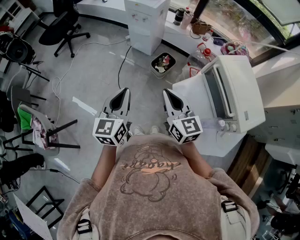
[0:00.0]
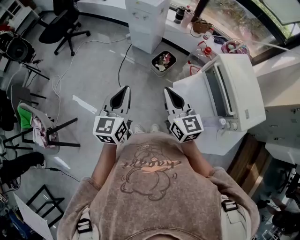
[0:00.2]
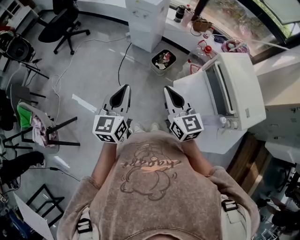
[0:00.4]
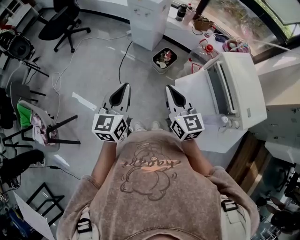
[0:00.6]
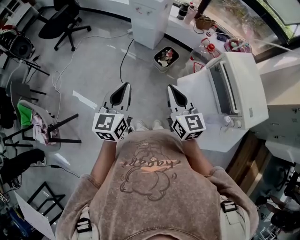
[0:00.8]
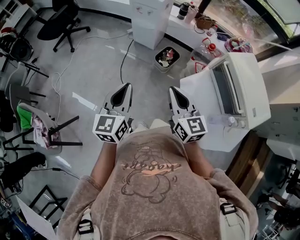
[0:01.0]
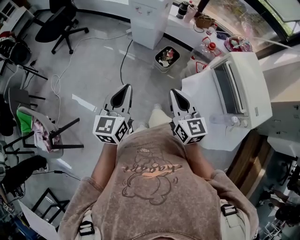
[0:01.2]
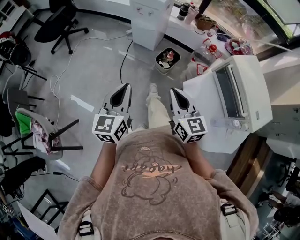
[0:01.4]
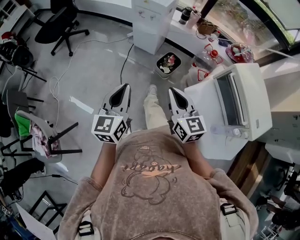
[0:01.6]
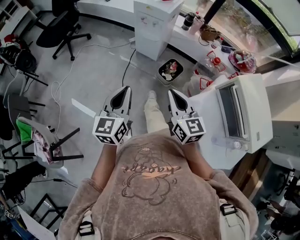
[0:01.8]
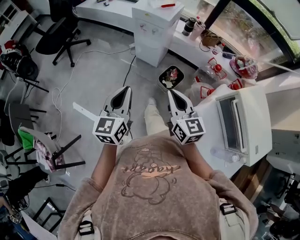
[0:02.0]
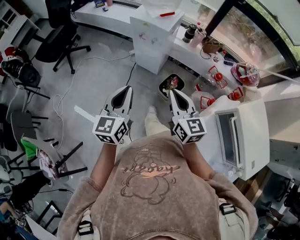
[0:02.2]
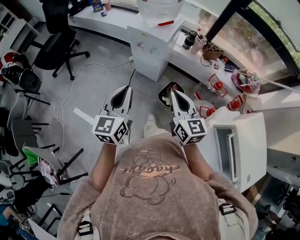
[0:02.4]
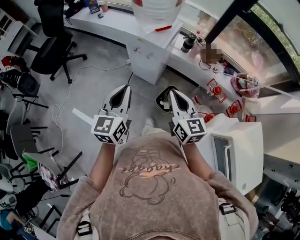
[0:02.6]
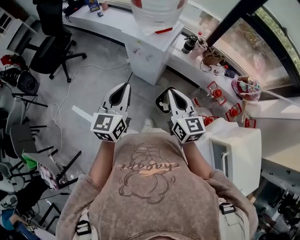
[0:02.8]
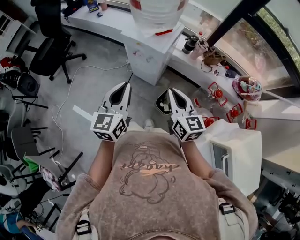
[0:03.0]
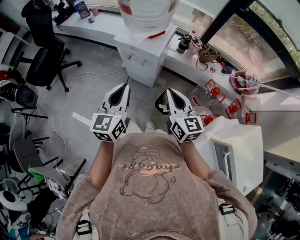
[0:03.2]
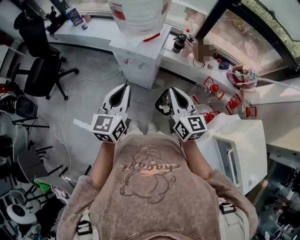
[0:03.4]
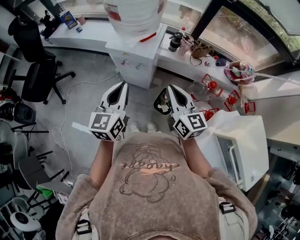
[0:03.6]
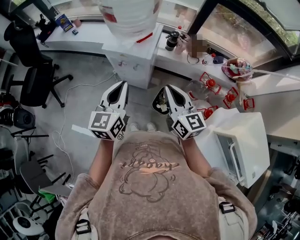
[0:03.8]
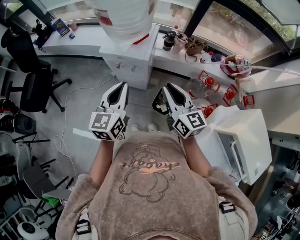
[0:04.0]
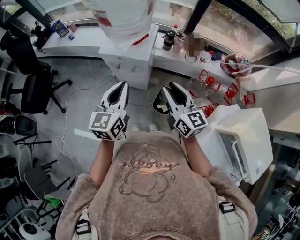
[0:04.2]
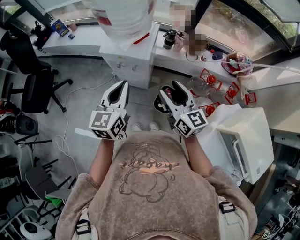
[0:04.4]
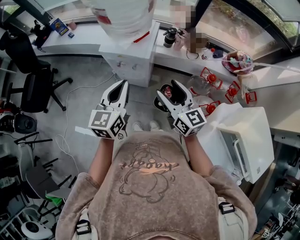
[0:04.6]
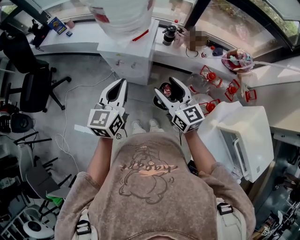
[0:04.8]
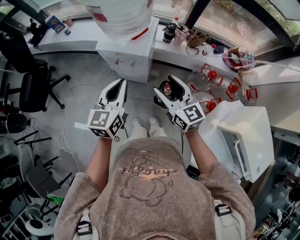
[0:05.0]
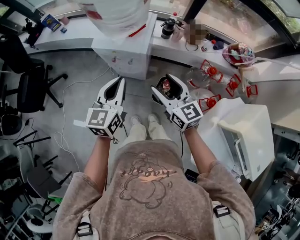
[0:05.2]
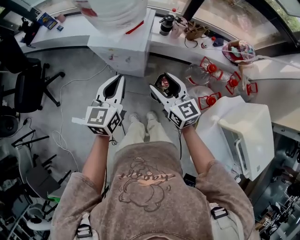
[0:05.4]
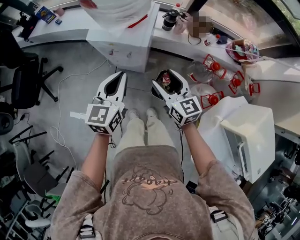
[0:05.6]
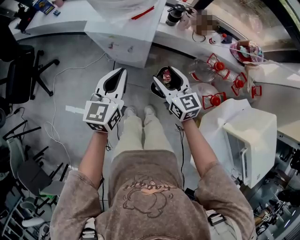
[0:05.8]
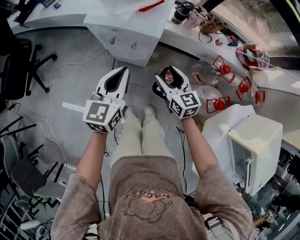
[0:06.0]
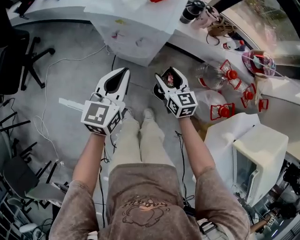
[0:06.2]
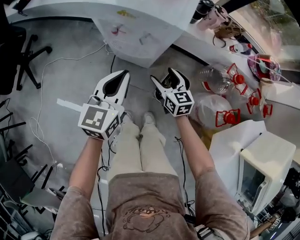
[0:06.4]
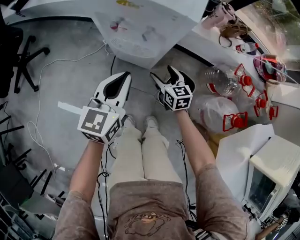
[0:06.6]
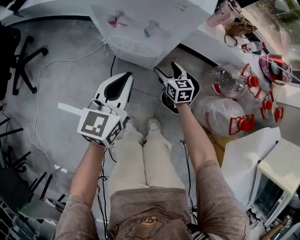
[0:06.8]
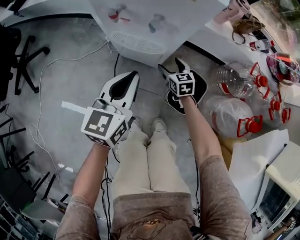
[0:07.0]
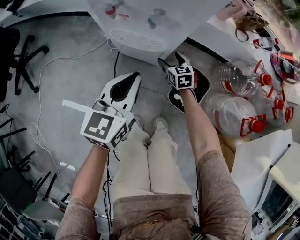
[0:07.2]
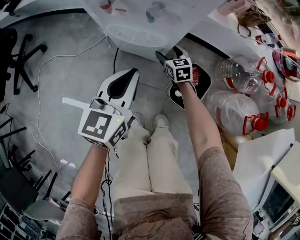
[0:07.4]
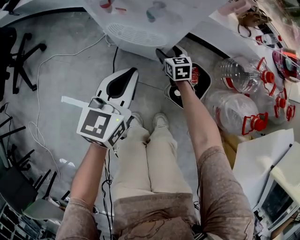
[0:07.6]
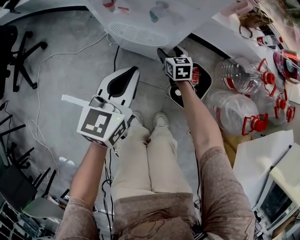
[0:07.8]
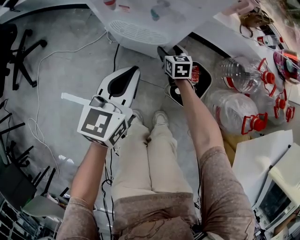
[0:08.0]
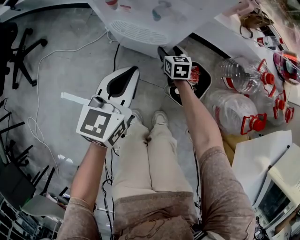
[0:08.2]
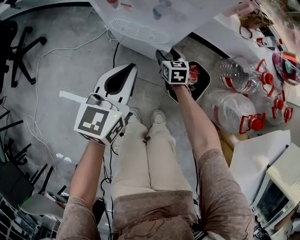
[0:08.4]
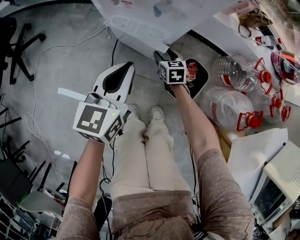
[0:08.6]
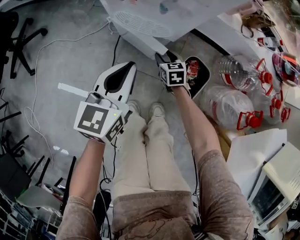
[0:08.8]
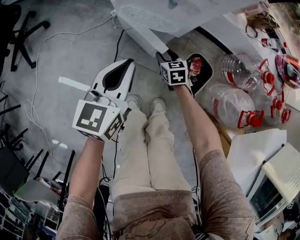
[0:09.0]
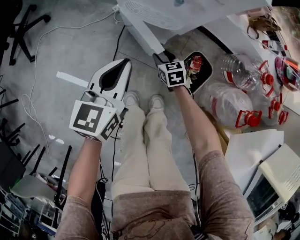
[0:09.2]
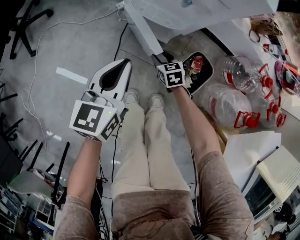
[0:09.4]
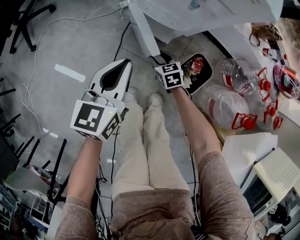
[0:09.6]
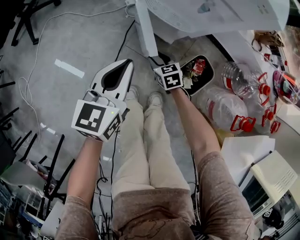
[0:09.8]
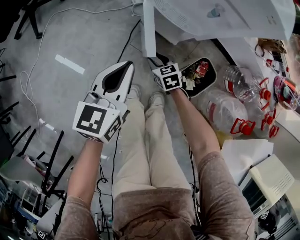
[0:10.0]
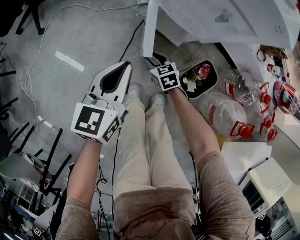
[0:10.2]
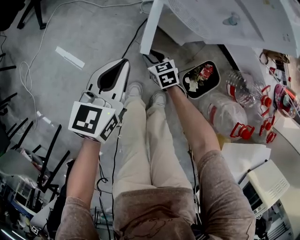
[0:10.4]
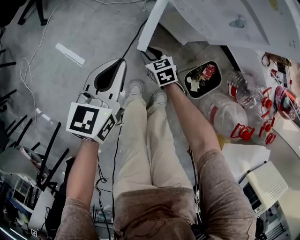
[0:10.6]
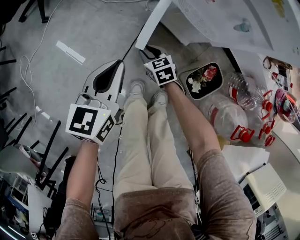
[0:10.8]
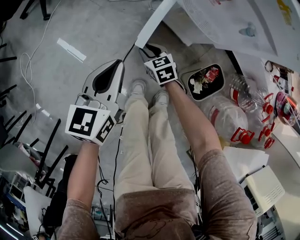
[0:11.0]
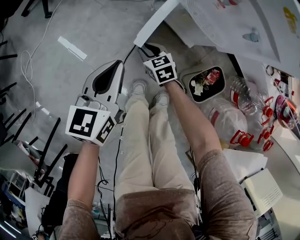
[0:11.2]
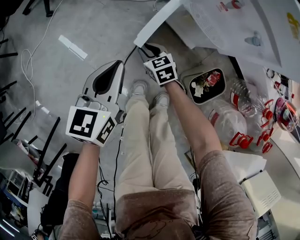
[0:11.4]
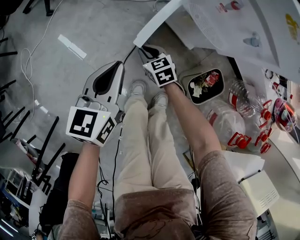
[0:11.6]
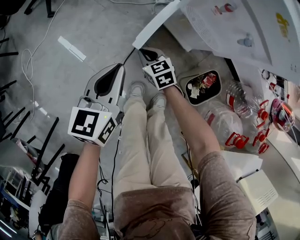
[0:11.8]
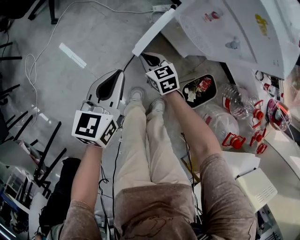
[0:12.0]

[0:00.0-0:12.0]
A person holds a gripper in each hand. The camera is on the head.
0:00.0 to 0:01.6: Both grippers travel together to the left and forward, about 10 cm.
0:01.6 to 0:03.0: The pair of grippers is taken forward, approximately 40 cm.
0:03.0 to 0:04.4: The left gripper heads forward, covering approximately 10 cm, while the right gripper opens.
0:04.4 to 0:06.0: The two grippers go approximately 20 cm downward.
0:06.0 to 0:07.6: The right gripper goes roughly 40 cm downward; the left gripper shifts roughly 25 cm downward.
0:07.6 to 0:09.0: The right gripper shifts some 10 cm backward, while the left gripper changes place by about 5 cm.
0:09.0 to 0:10.4: The two grippers go approximately 15 cm to the left. The right gripper swivels approximately 30 degrees.
0:10.4 to 0:12.0: The right gripper is displaced upward and to the left by some 10 cm, and closes its fingers; the left gripper shifts some 5 cm to the left.

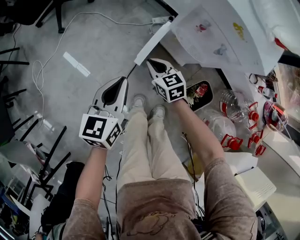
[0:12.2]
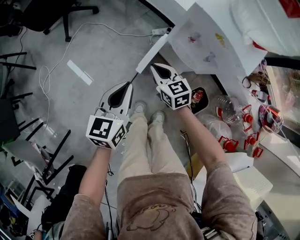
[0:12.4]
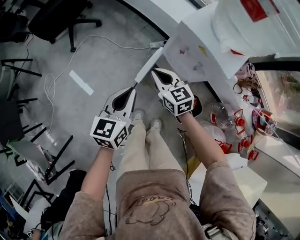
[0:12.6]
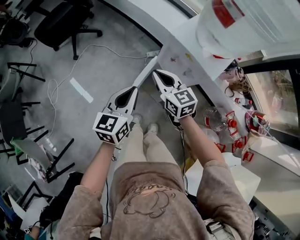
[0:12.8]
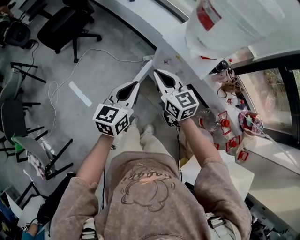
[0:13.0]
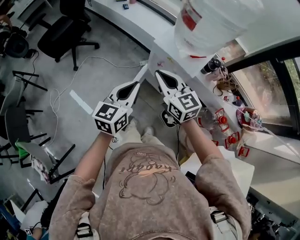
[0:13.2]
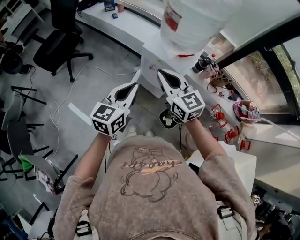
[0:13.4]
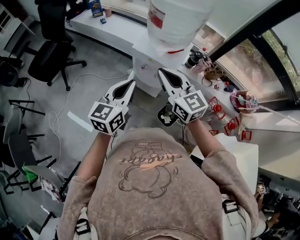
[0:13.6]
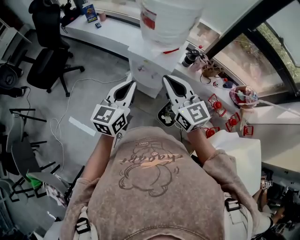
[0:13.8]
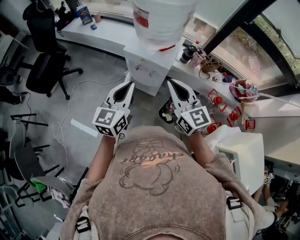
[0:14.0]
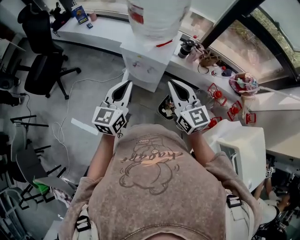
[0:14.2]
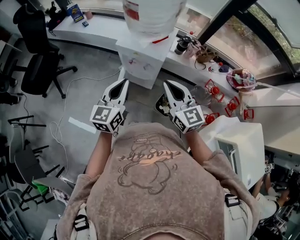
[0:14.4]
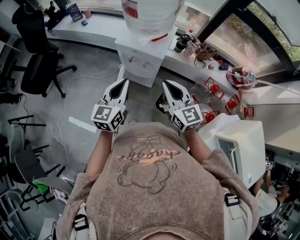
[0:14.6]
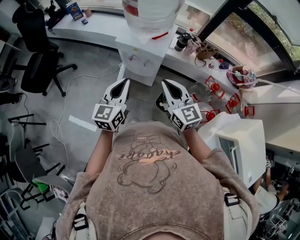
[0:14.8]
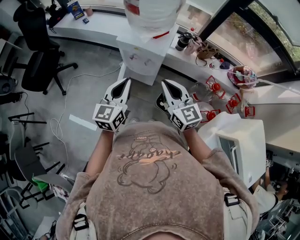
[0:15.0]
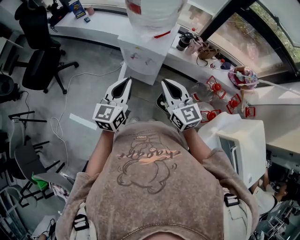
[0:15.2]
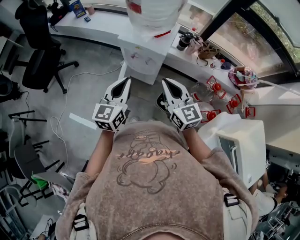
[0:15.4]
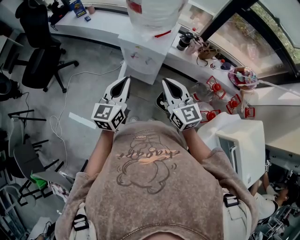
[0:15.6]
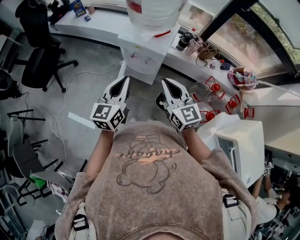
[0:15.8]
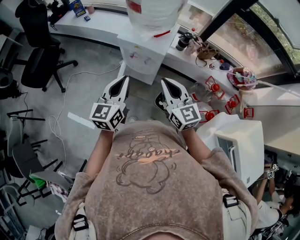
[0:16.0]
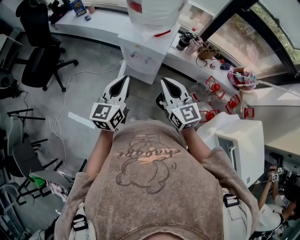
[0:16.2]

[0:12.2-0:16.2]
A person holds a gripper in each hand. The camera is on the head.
0:12.2 to 0:13.6: The right gripper travels upward by approximately 50 cm, and changes its angle by roughly 30 degrees. Meanwhile the left gripper heads upward and to the right, covering approximately 40 cm, and swivels approximately 30 degrees.
0:13.6 to 0:14.8: The right gripper is displaced to the right, downward and backward by about 15 cm. The left gripper heads downward, covering about 5 cm.
0:14.8 to 0:16.2: The grippers stay close to where they were, moving slightly.

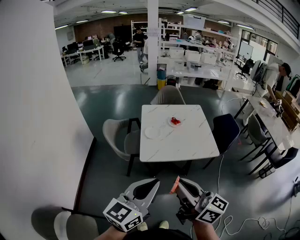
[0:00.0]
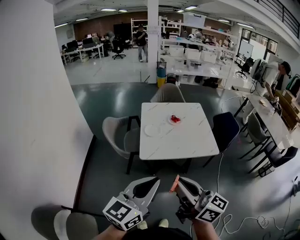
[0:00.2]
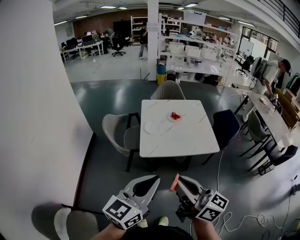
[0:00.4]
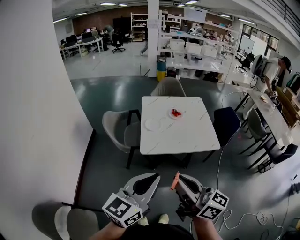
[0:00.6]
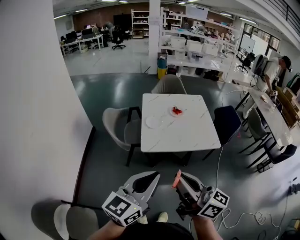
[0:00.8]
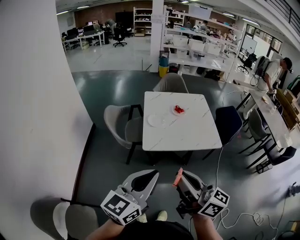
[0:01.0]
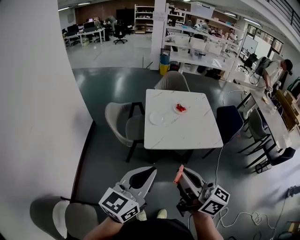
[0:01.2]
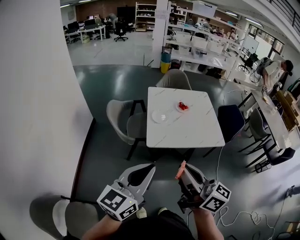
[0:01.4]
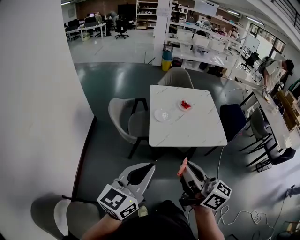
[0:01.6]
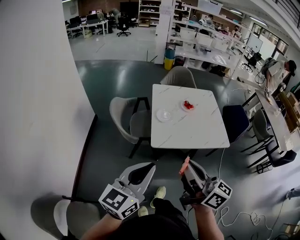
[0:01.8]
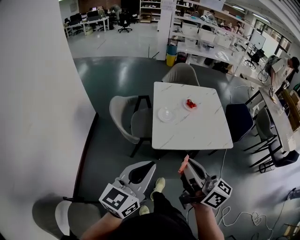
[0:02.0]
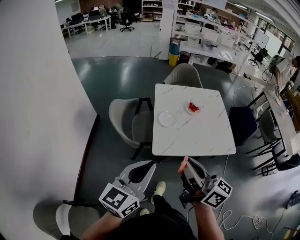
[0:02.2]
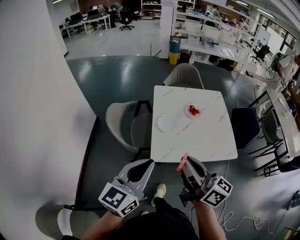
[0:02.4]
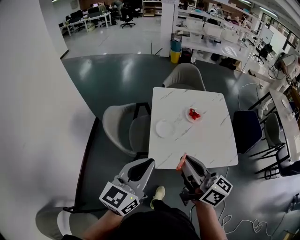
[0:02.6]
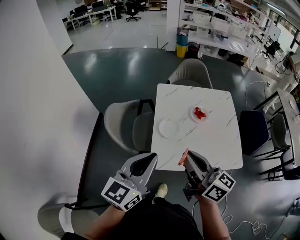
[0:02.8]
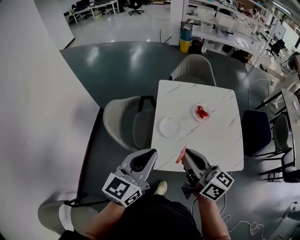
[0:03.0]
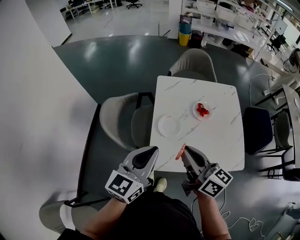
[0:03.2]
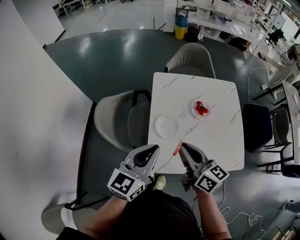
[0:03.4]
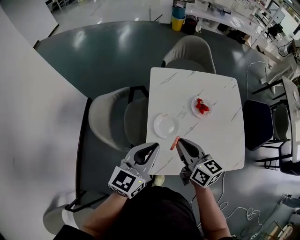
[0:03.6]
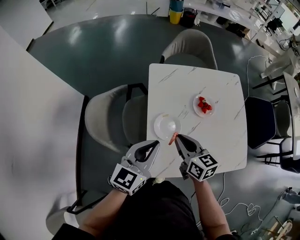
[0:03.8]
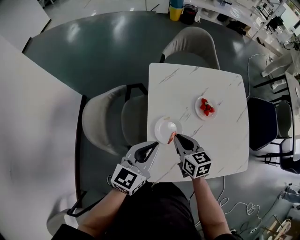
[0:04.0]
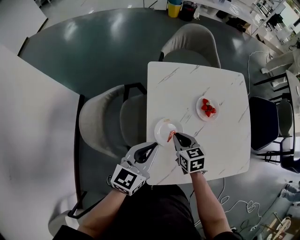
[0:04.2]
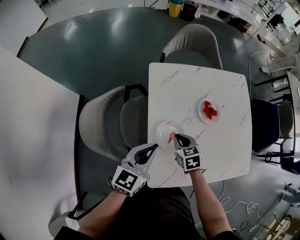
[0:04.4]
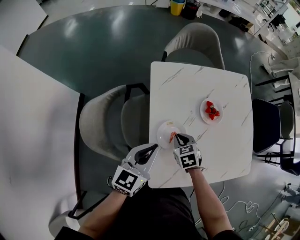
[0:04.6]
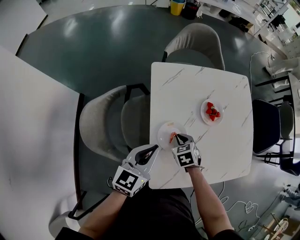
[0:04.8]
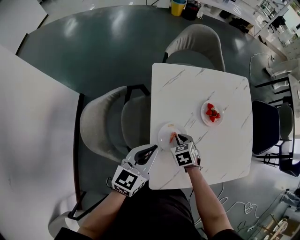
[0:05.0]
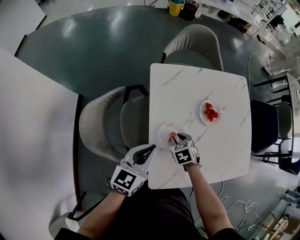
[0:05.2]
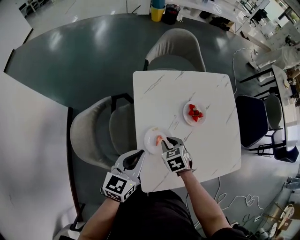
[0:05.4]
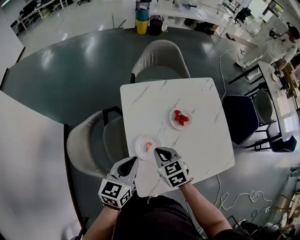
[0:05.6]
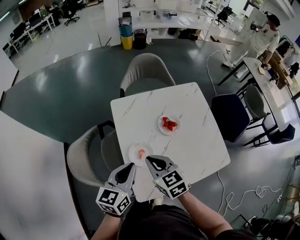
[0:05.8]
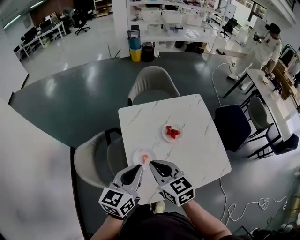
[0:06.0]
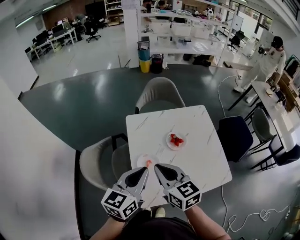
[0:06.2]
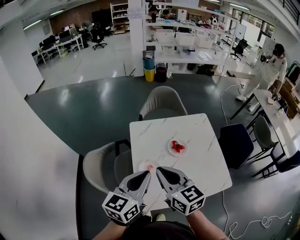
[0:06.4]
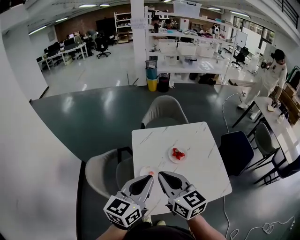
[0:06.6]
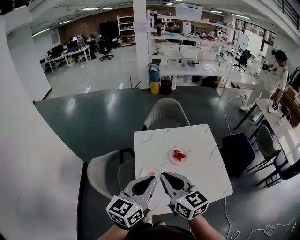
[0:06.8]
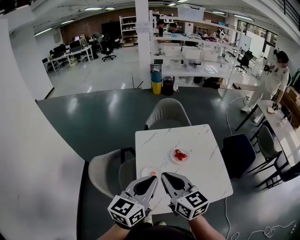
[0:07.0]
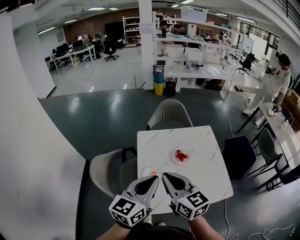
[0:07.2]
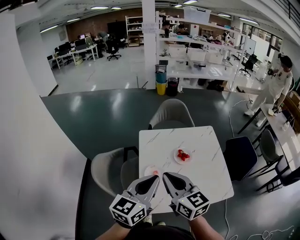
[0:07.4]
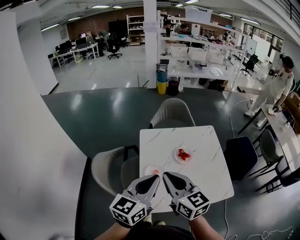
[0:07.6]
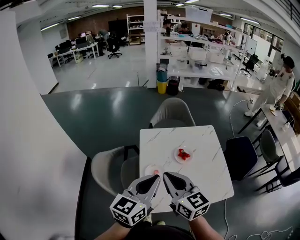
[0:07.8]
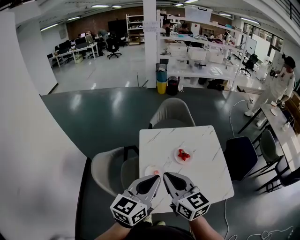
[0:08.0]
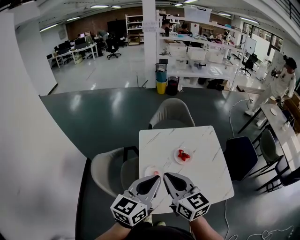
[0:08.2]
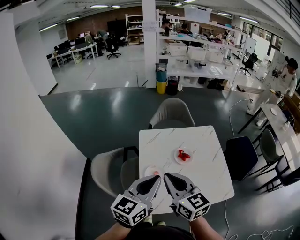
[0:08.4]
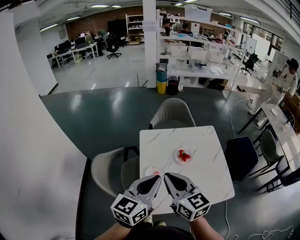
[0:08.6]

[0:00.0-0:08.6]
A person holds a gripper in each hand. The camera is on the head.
0:00.0 to 0:01.4: Both grippers move to the left, some 10 cm.
0:01.4 to 0:02.8: Both grippers move forward, some 30 cm.
0:02.8 to 0:04.4: The left gripper shifts roughly 35 cm forward and downward. The right gripper heads downward and forward, covering roughly 50 cm, and points its fingers some 60 degrees further downward.
0:04.4 to 0:05.8: The left gripper heads upward, covering roughly 10 cm. Meanwhile the right gripper moves upward, about 20 cm.
0:05.8 to 0:07.2: The right gripper travels upward and backward by some 20 cm, and turns by roughly 30 degrees. The left gripper heads upward, backward and to the right, covering approximately 20 cm.
0:07.2 to 0:08.6: Neither gripper changes place.
